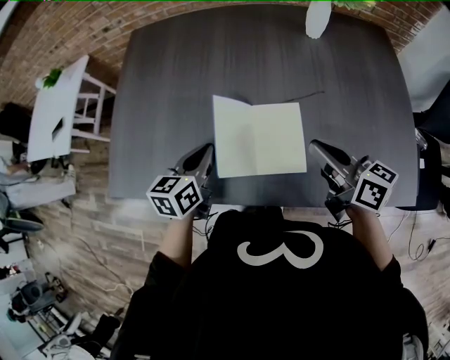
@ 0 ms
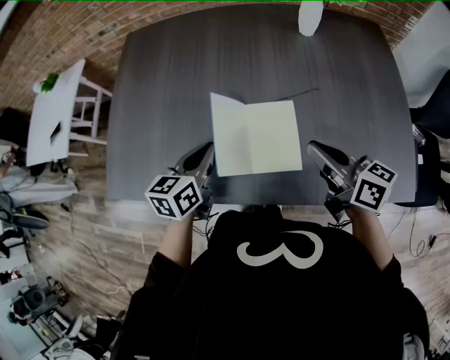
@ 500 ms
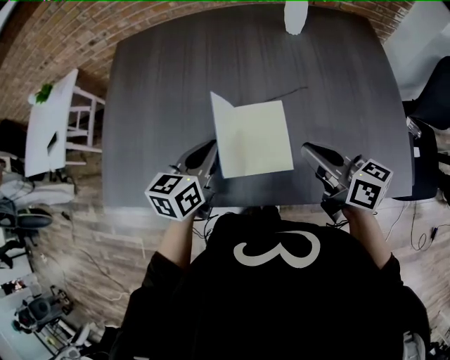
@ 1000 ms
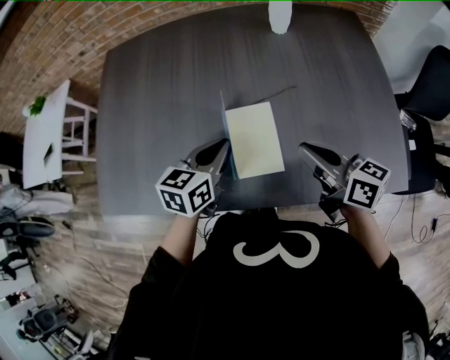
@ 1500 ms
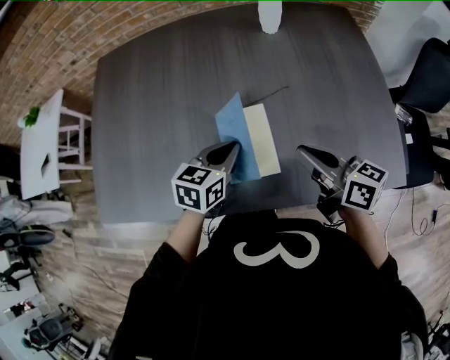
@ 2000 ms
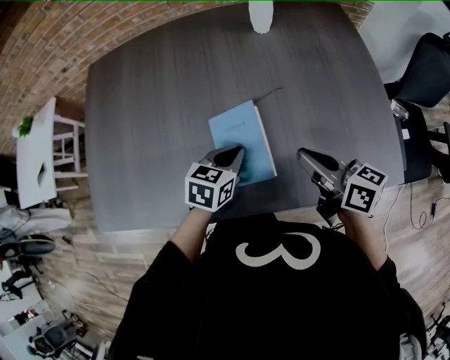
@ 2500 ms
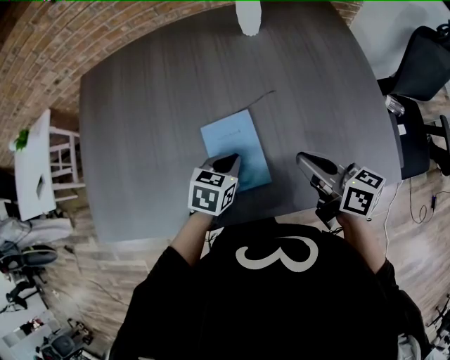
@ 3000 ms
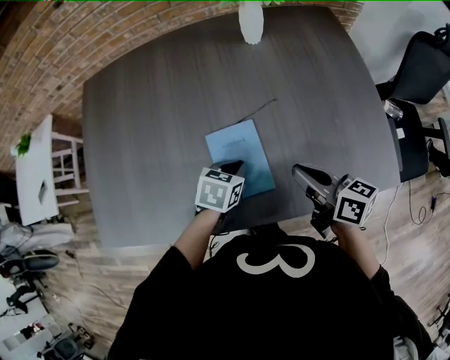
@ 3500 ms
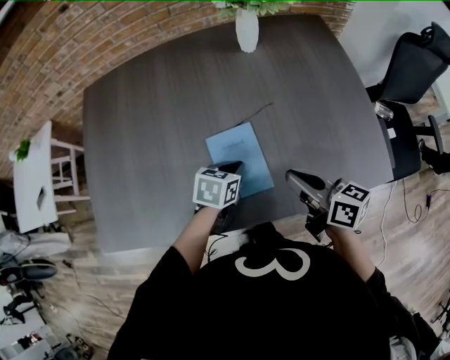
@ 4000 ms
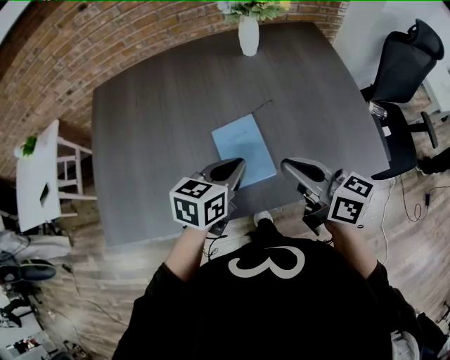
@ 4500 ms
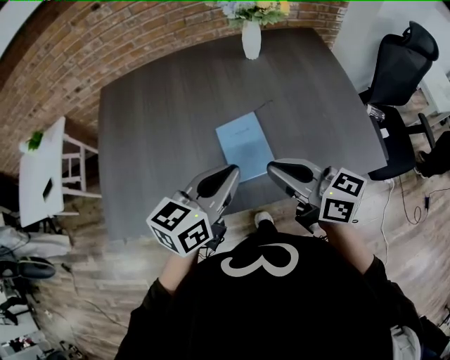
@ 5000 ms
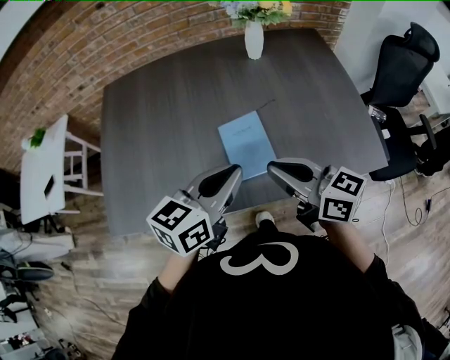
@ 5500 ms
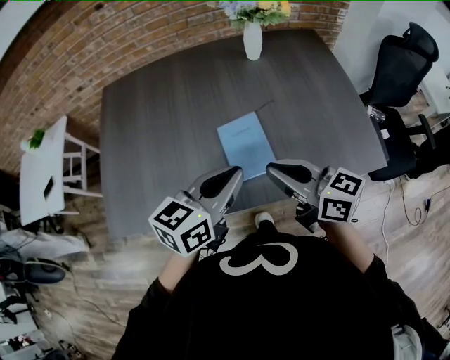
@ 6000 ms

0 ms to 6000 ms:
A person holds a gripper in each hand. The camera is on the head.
0 ms to 2000 ms: The right gripper shifts by approximately 5 cm. Meanwhile the left gripper travels to the right by approximately 15 cm, and rotates about 20 degrees.
2000 ms to 4000 ms: The left gripper is displaced downward by roughly 5 cm.
4000 ms to 6000 ms: The left gripper travels upward and backward by about 25 cm, and tilts its fingers roughly 30 degrees upward; the right gripper is displaced upward, to the left and backward by some 15 cm.

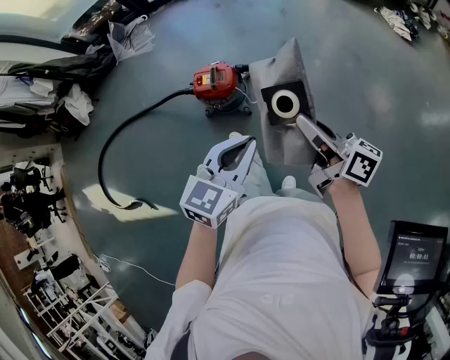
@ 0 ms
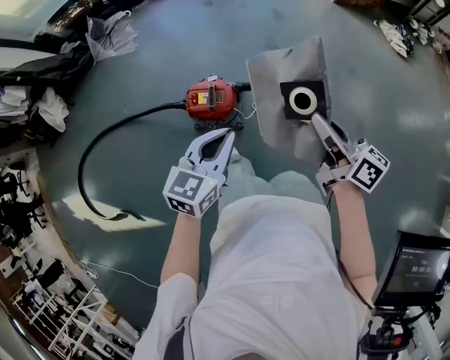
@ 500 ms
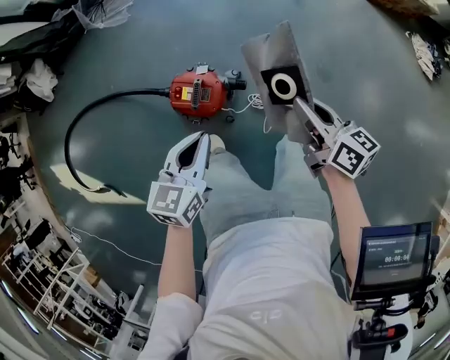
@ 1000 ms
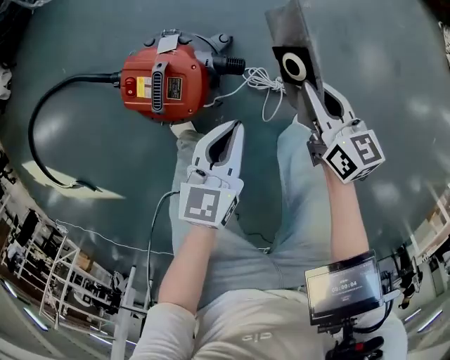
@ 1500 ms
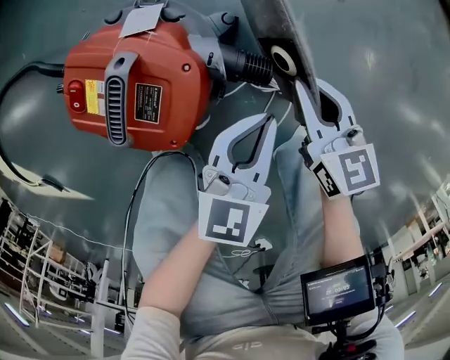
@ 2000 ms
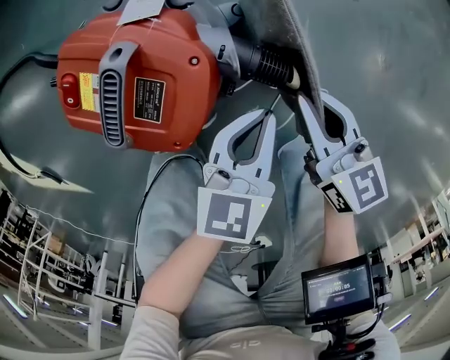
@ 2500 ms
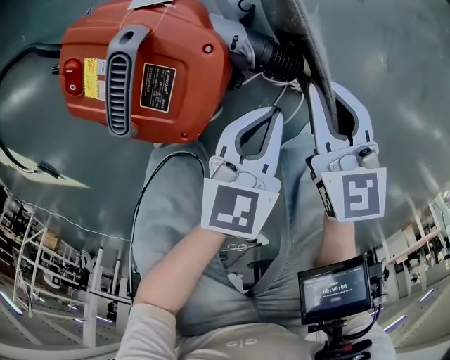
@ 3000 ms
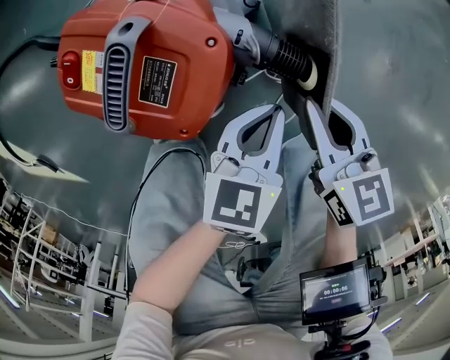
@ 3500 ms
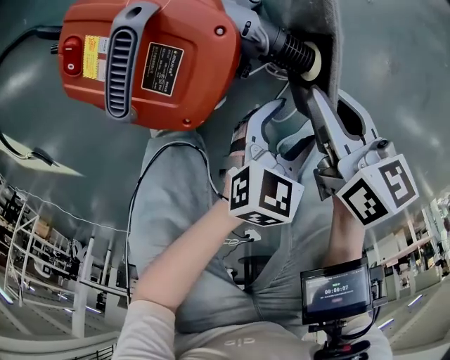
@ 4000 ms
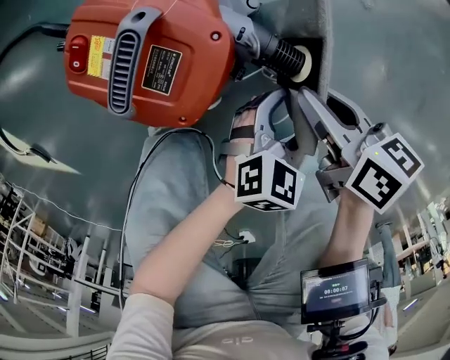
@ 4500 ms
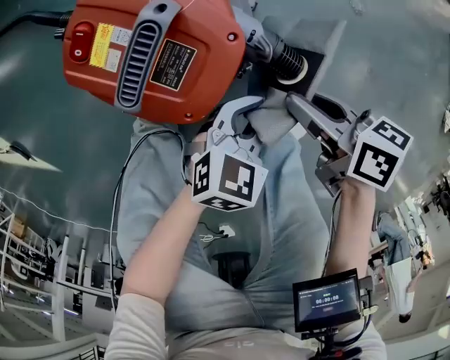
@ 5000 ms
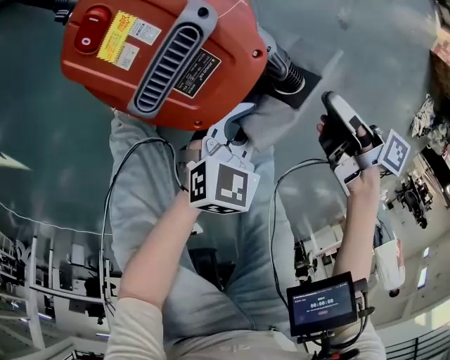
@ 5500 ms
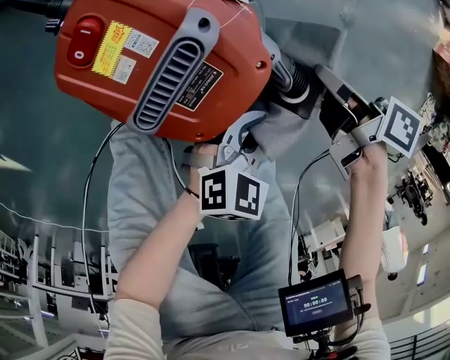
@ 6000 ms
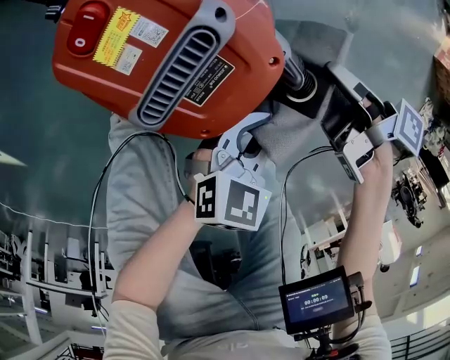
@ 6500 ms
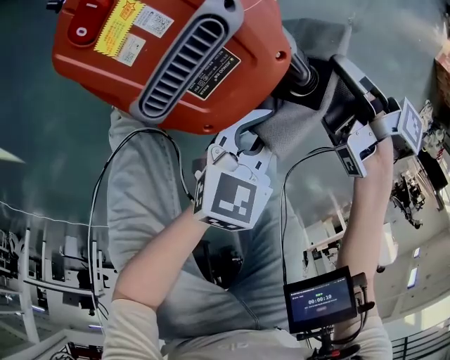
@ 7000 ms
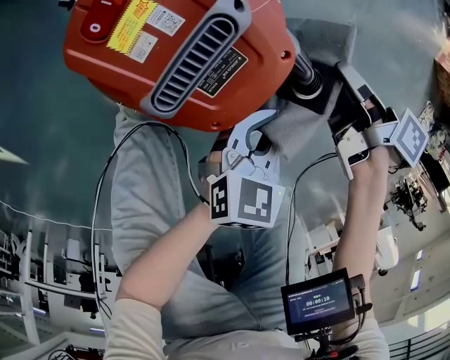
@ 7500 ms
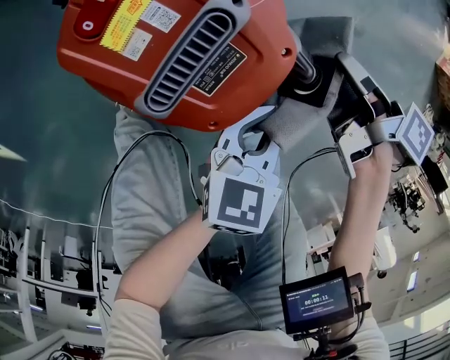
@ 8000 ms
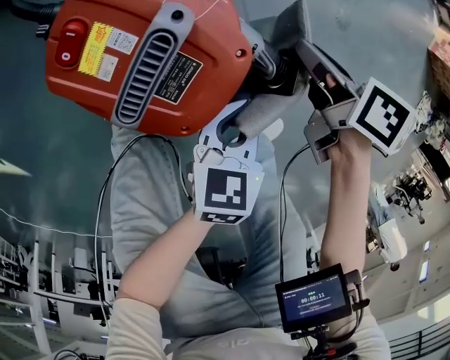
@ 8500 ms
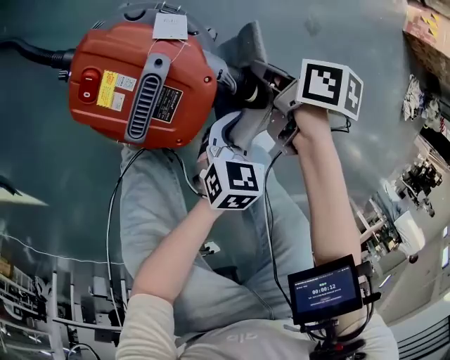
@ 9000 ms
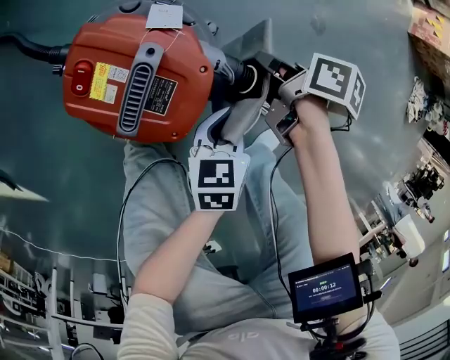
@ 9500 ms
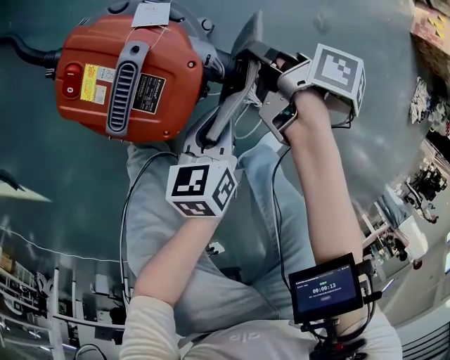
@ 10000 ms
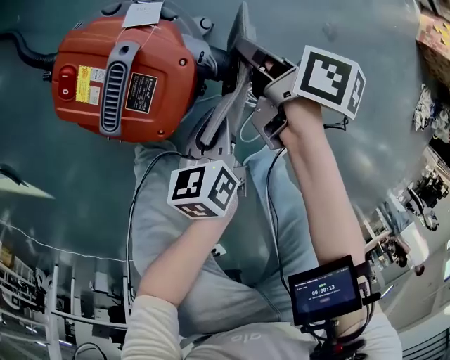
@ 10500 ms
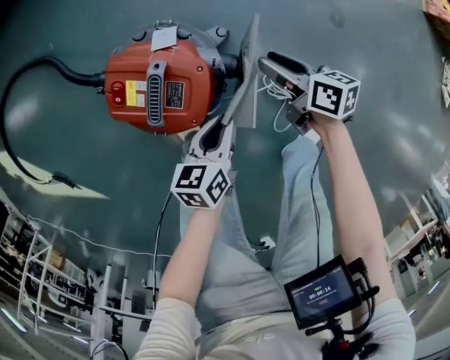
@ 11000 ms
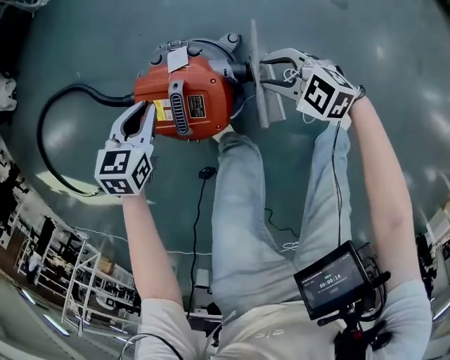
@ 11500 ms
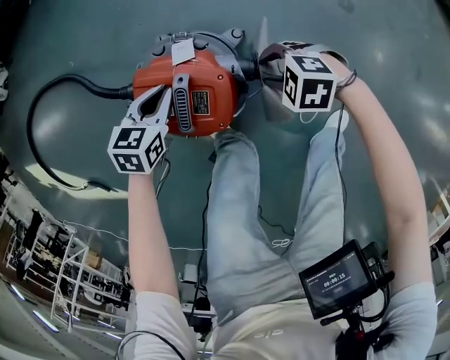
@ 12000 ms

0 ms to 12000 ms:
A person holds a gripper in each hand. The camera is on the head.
0 ms to 2000 ms: Both grippers move downward and forward, roughly 80 cm. The right gripper tips its fingers downward by some 40 degrees. Meanwhile the left gripper rotates some 30 degrees.
2000 ms to 4000 ms: The left gripper shifts about 5 cm backward, changes its angle by some 20 degrees, and opens up. The right gripper rotates about 20 degrees.
4000 ms to 6000 ms: The left gripper shifts by about 5 cm, and closes. Meanwhile the right gripper moves some 10 cm, and swivels approximately 30 degrees.
6000 ms to 8000 ms: The left gripper ends up roughly 5 cm from where it was, and changes its angle by some 30 degrees.
10000 ms to 12000 ms: The left gripper ends up approximately 25 cm from where it was, and rotates around the line of its fingers by approximately 40 degrees, clockwise from behind; the right gripper moves about 10 cm, twists roughly 110 degrees counterclockwise, seen from behind, and opens its fingers.

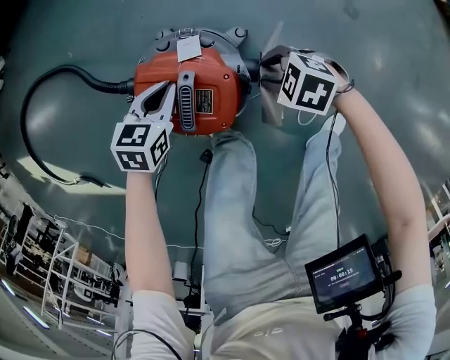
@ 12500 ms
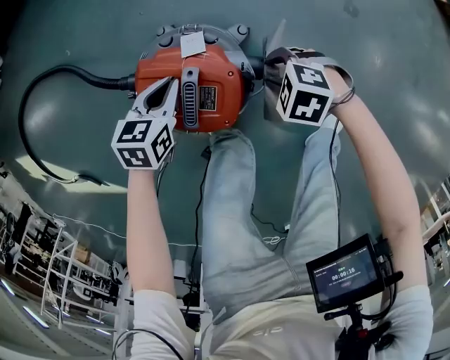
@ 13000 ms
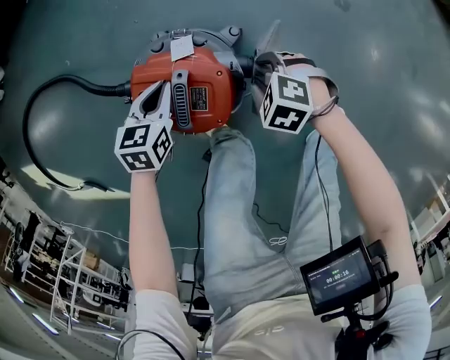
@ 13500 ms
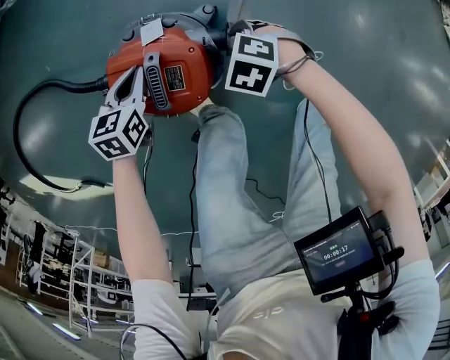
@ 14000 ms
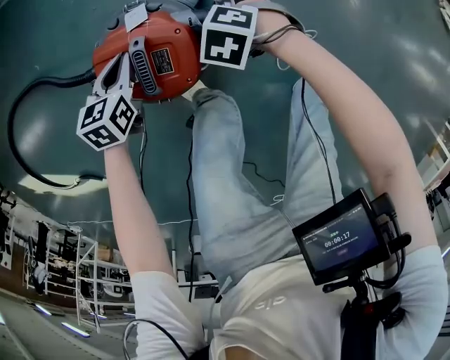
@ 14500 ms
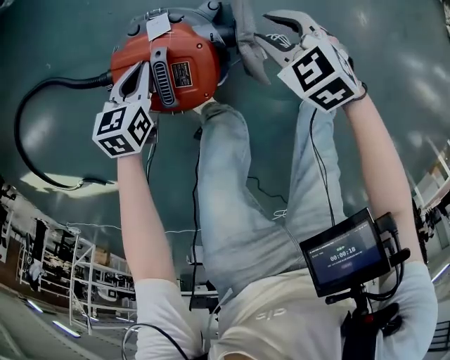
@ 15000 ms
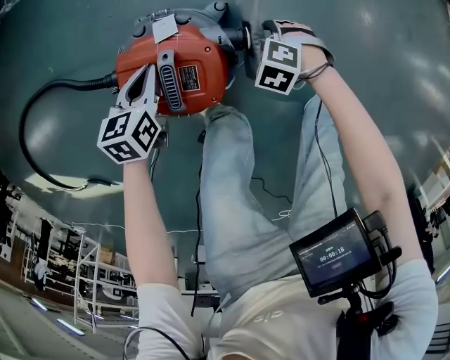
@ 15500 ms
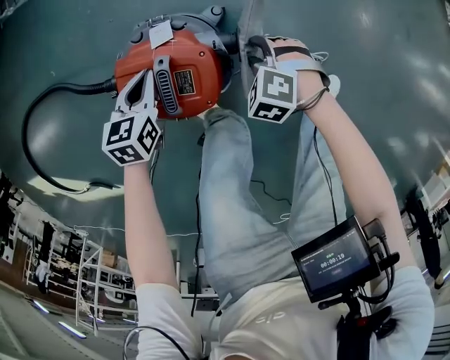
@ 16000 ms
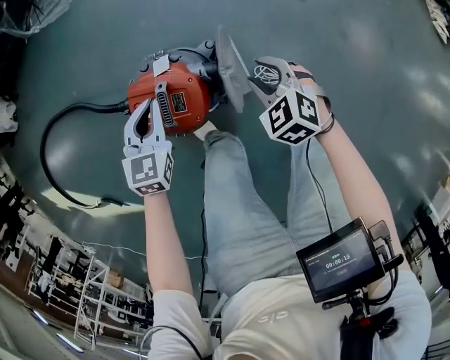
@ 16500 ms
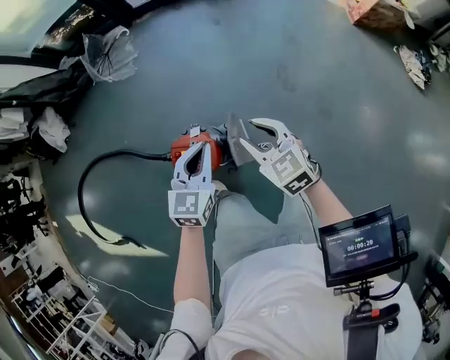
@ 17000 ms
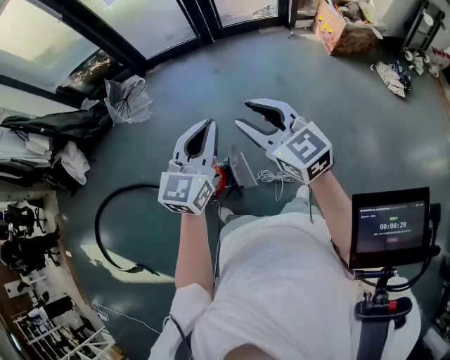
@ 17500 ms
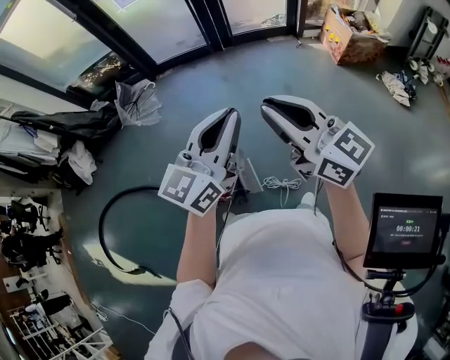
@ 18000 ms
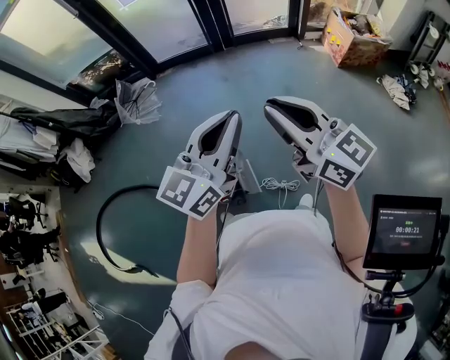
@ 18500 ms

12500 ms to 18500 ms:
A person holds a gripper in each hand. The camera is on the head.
12500 ms to 14500 ms: The right gripper swivels roughly 20 degrees.
14500 ms to 16500 ms: The right gripper moves up and down over roughly 20 cm, changing direction 2 times, and rotates approximately 30 degrees, while the left gripper travels upward by roughly 15 cm, and swivels roughly 20 degrees.
16500 ms to 18500 ms: The right gripper moves upward, some 70 cm, angles its fingers upward, by roughly 60 degrees, and closes. The left gripper goes approximately 70 cm upward and to the right, and points its fingers about 50 degrees further upward.

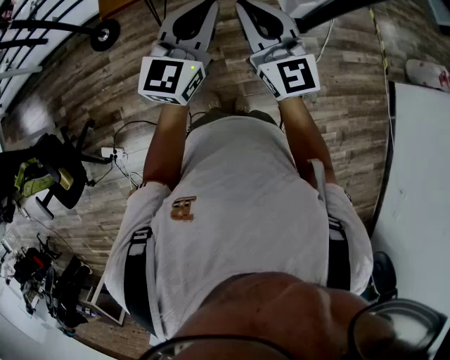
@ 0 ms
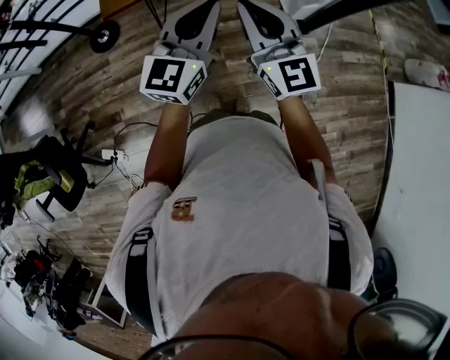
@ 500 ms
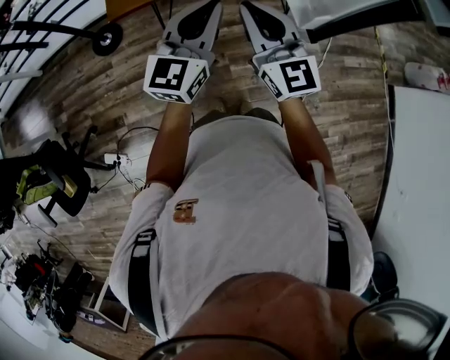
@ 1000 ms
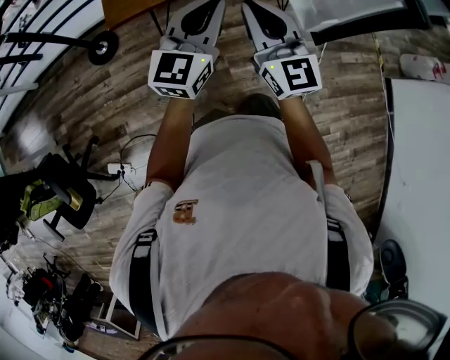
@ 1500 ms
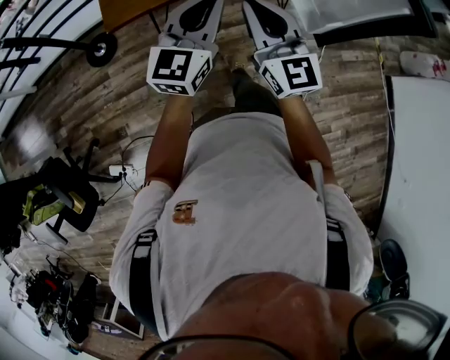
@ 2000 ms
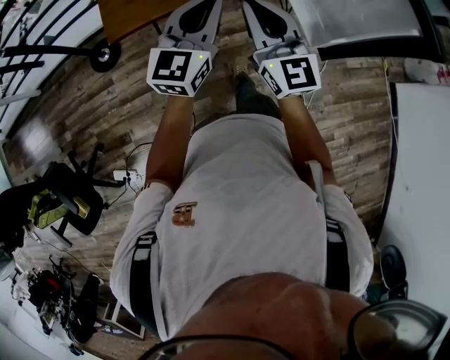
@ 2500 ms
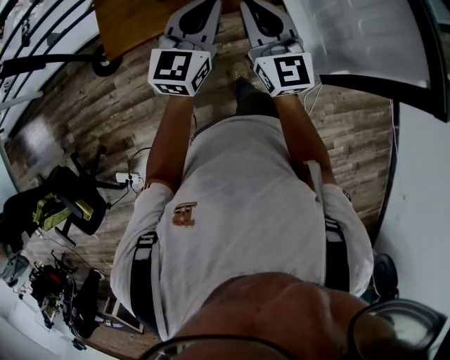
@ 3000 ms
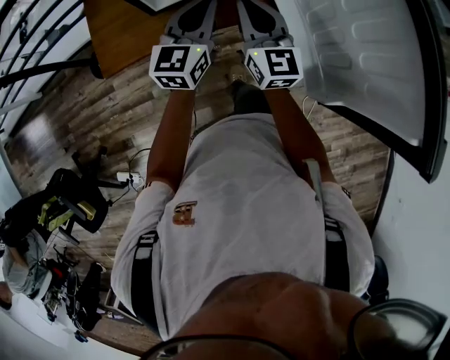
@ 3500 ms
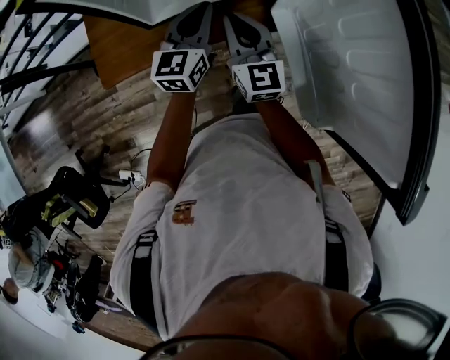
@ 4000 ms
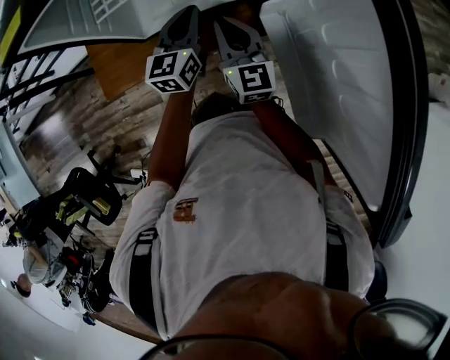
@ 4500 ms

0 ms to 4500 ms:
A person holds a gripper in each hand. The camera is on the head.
0 ms to 2000 ms: The grippers both shift to the left and forward by approximately 15 cm.
2000 ms to 4500 ms: The pair of grippers is taken forward, some 50 cm. The left gripper turns by about 20 degrees.
